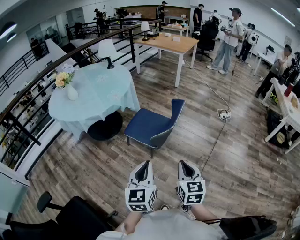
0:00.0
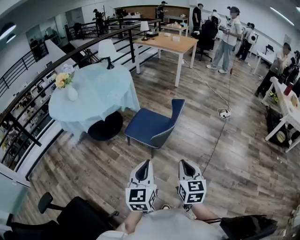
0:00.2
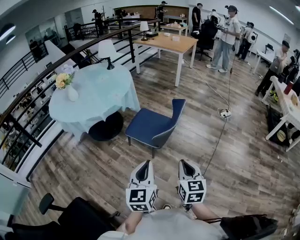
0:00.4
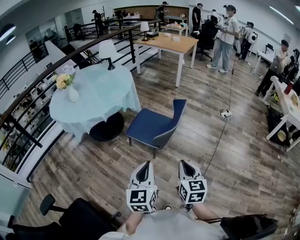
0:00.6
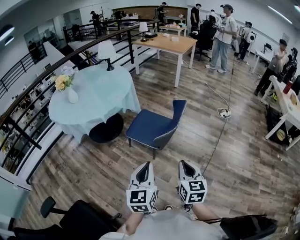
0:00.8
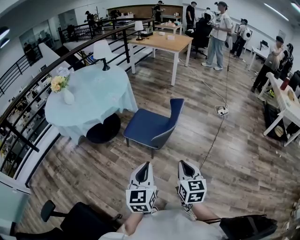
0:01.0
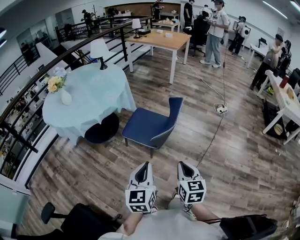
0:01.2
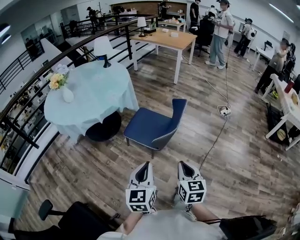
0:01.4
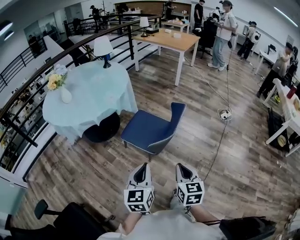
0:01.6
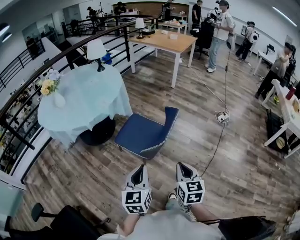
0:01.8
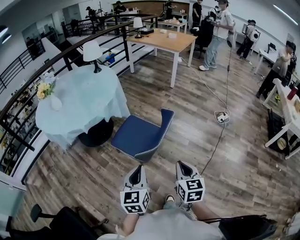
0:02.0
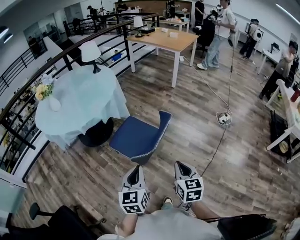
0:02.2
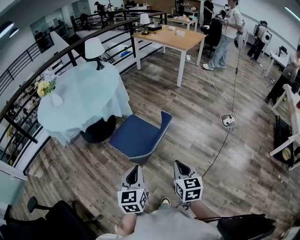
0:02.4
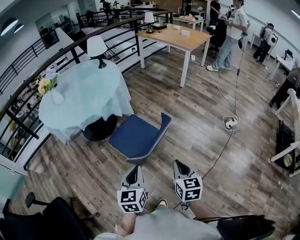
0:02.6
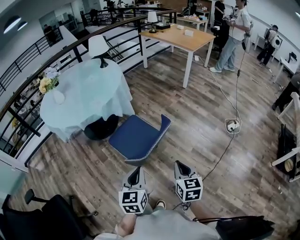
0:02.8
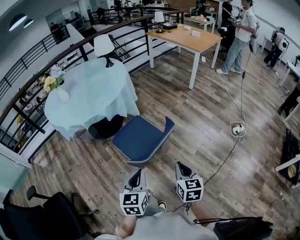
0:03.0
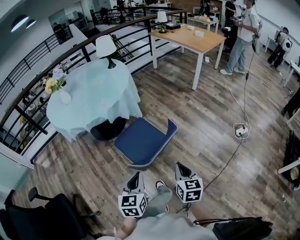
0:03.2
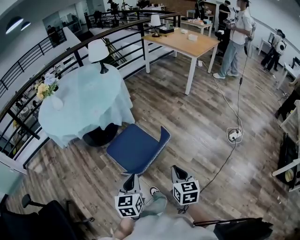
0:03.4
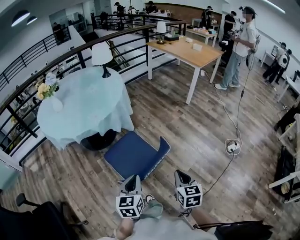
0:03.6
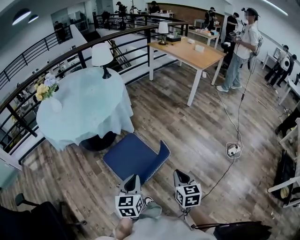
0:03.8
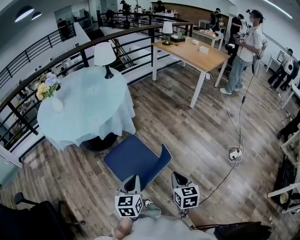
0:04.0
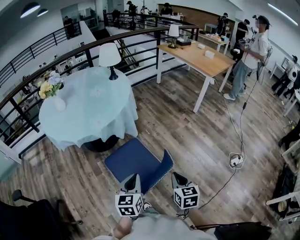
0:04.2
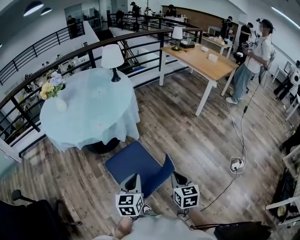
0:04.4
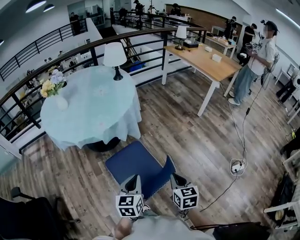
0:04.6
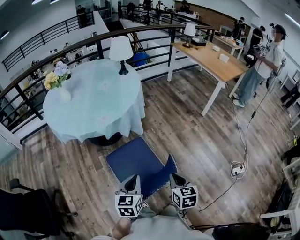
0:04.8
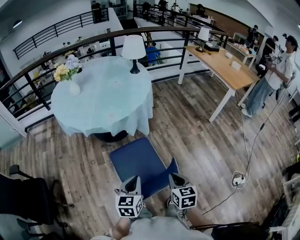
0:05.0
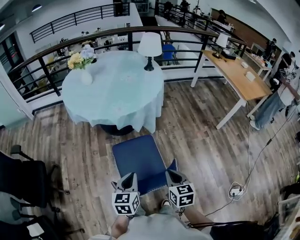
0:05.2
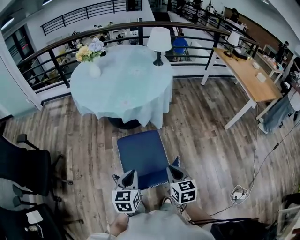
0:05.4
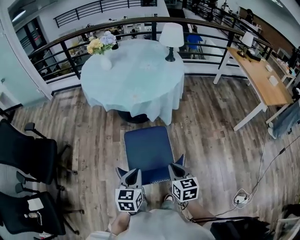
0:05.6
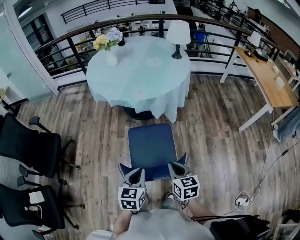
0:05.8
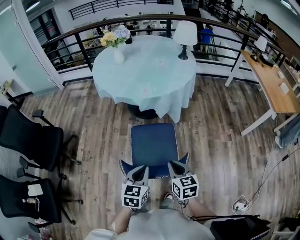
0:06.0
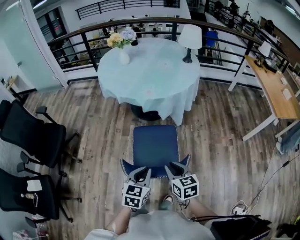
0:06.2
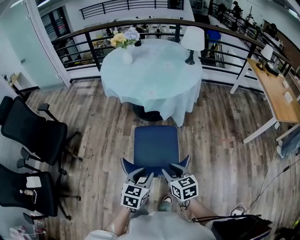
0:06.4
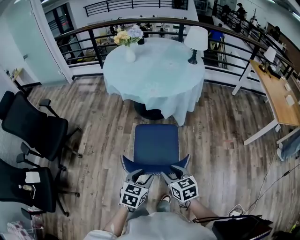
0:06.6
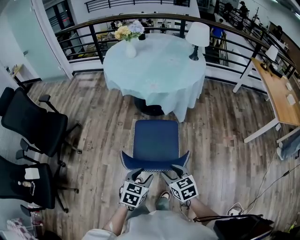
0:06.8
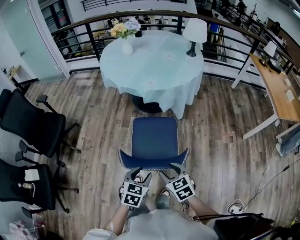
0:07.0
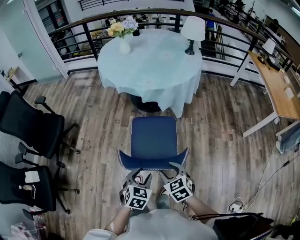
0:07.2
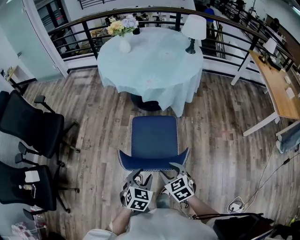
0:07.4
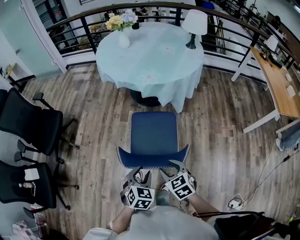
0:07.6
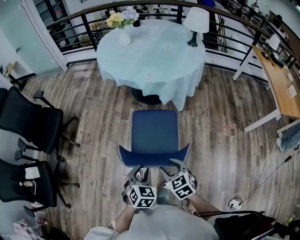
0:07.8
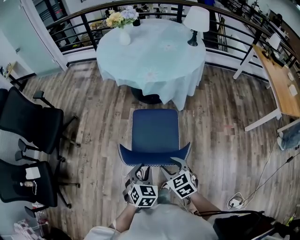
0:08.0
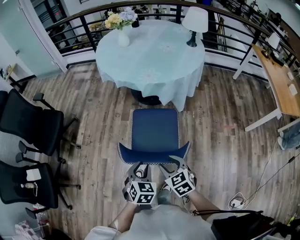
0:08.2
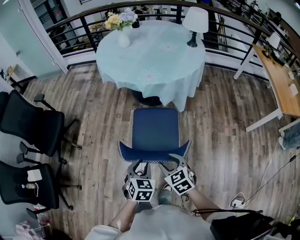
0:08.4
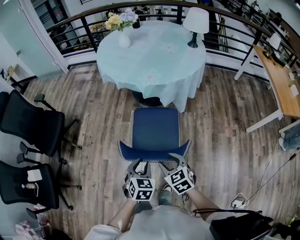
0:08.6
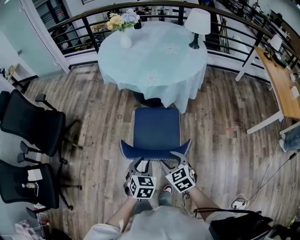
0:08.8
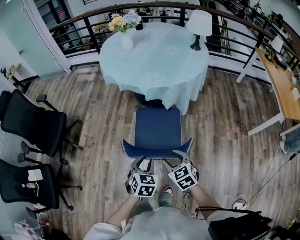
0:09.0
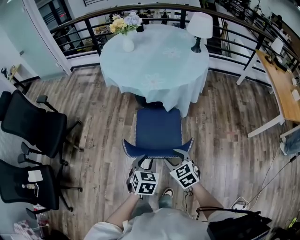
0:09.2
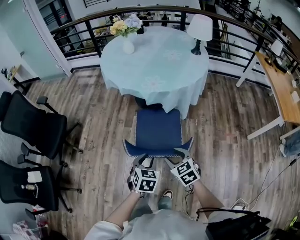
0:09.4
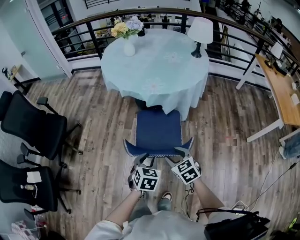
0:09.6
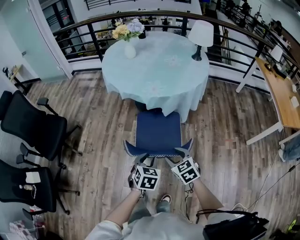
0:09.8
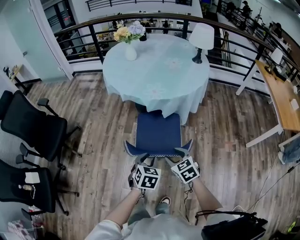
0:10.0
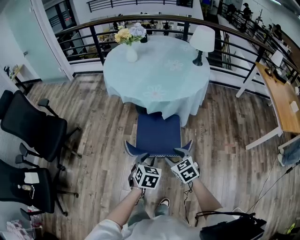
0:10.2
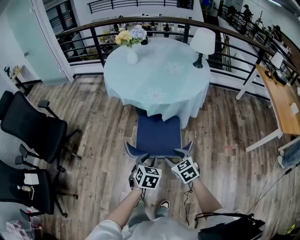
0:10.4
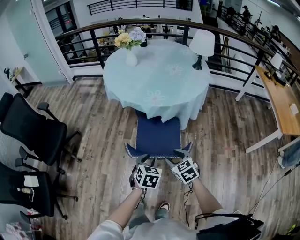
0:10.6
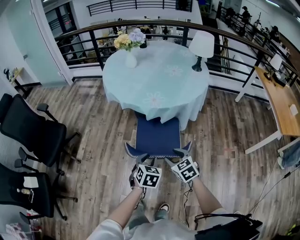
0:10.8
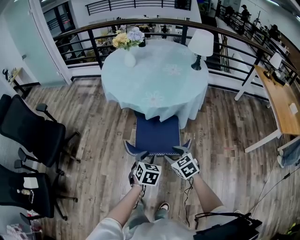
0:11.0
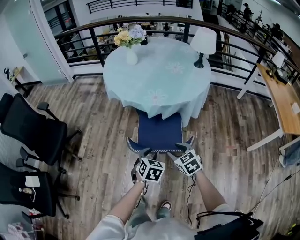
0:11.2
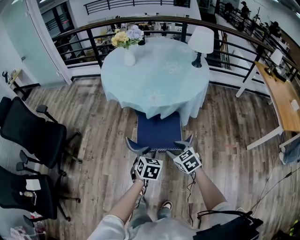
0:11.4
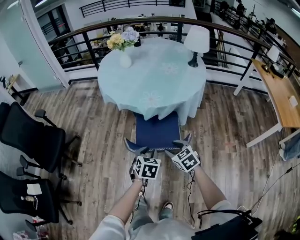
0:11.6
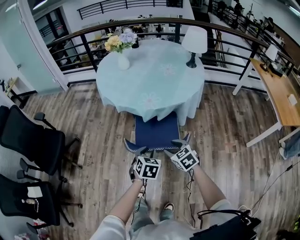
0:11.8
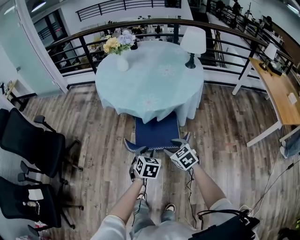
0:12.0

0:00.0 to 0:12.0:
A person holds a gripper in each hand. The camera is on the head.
0:00.0 to 0:01.6: The grippers both shift forward by approximately 10 cm.
0:01.6 to 0:03.0: Both grippers travel together to the right and forward, approximately 25 cm.
0:03.0 to 0:04.4: Both grippers move forward, approximately 20 cm.
0:04.4 to 0:06.0: The right gripper moves roughly 10 cm, and swivels approximately 40 degrees. The left gripper changes place by approximately 5 cm, and changes its angle by approximately 30 degrees.
0:06.0 to 0:07.6: The left gripper is displaced downward and backward by some 10 cm, rotates roughly 20 degrees, and opens up. Meanwhile the right gripper shifts roughly 5 cm backward and downward, rotates about 30 degrees, and opens its fingers.
0:07.6 to 0:09.0: The two grippers go some 5 cm forward.
0:09.0 to 0:10.4: Both grippers move forward, about 10 cm.
0:10.4 to 0:12.0: The grippers both shift forward by approximately 10 cm.

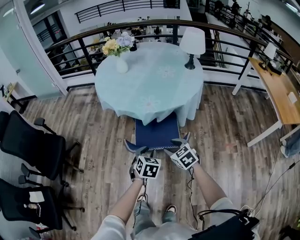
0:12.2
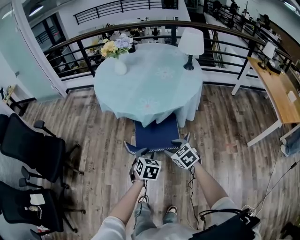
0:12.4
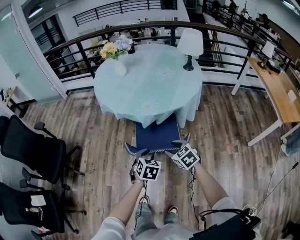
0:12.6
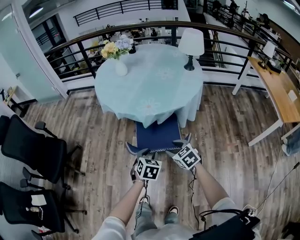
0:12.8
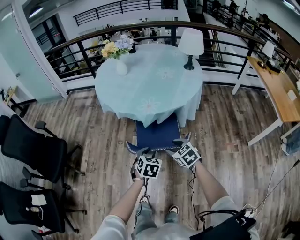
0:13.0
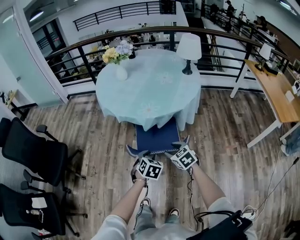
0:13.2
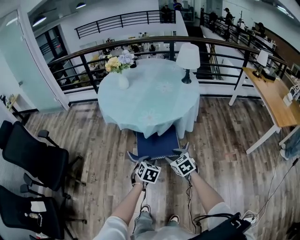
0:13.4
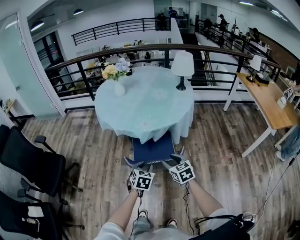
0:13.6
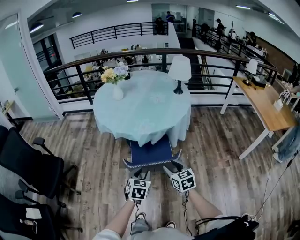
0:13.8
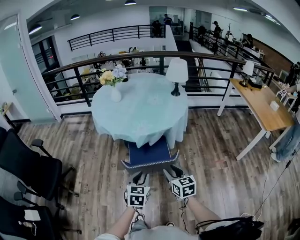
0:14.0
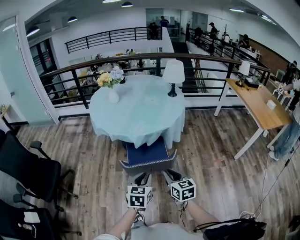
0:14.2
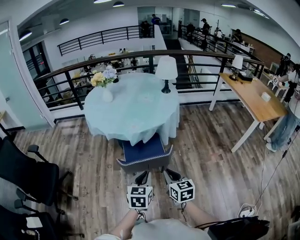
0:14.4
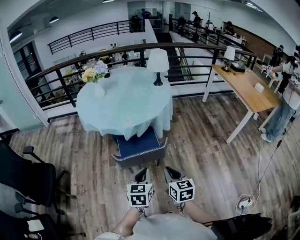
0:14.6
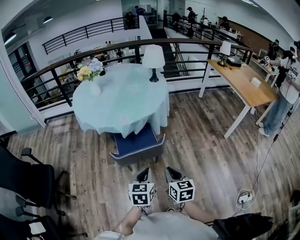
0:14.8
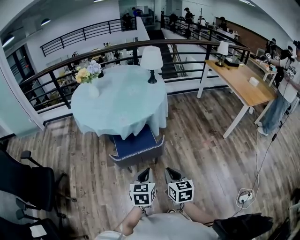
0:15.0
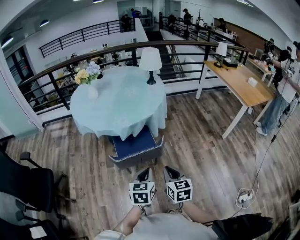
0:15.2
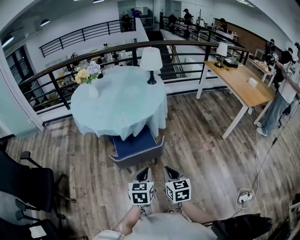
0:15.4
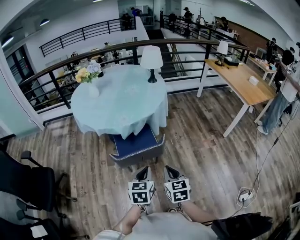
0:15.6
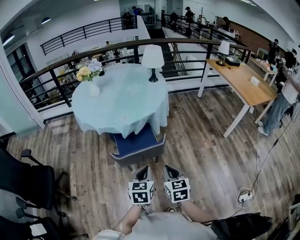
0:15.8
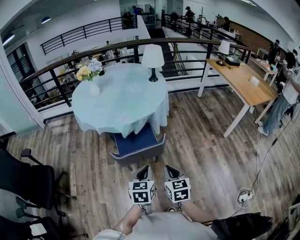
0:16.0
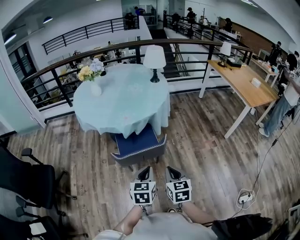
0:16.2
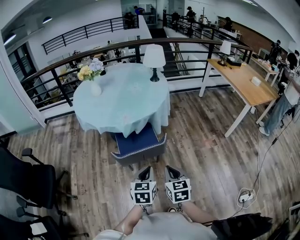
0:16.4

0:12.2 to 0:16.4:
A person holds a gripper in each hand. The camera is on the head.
0:12.2 to 0:13.6: The right gripper moves some 5 cm.
0:13.6 to 0:15.0: The left gripper goes roughly 15 cm backward, upward and to the right, swivels some 20 degrees, and closes up. Meanwhile the right gripper moves backward, roughly 15 cm, turns by roughly 30 degrees, and closes up.
0:15.0 to 0:16.4: The grippers make only small movements.

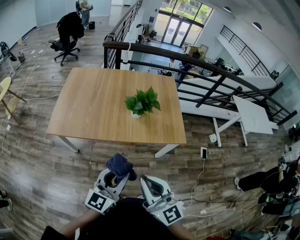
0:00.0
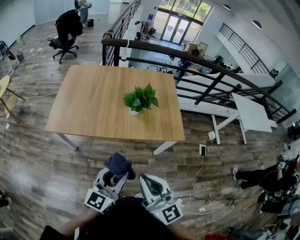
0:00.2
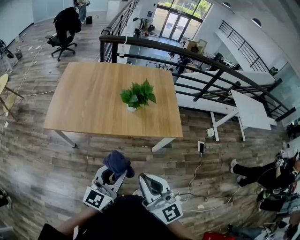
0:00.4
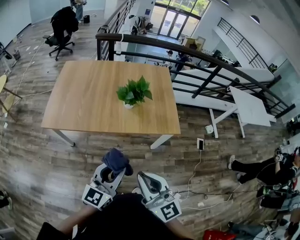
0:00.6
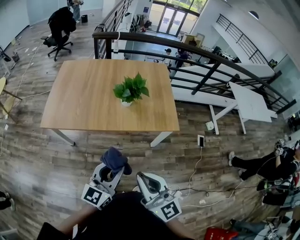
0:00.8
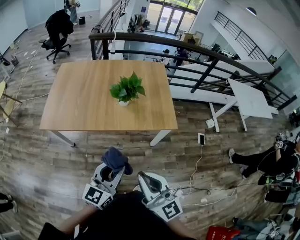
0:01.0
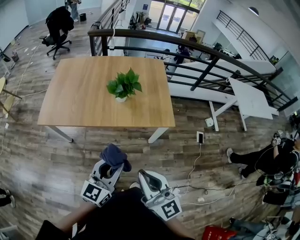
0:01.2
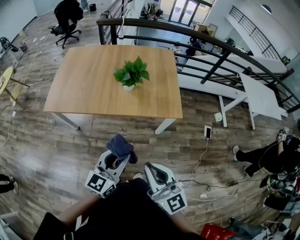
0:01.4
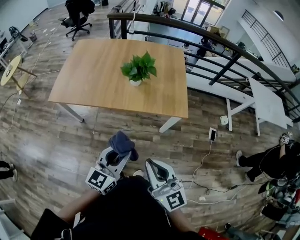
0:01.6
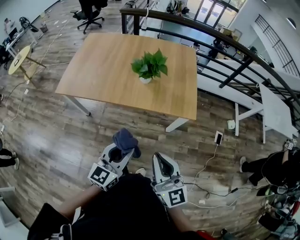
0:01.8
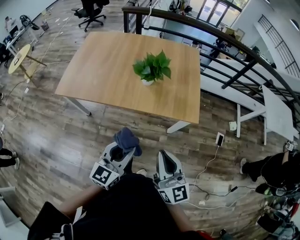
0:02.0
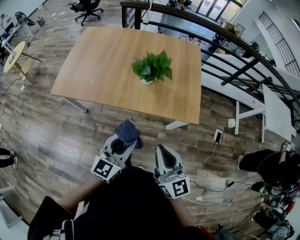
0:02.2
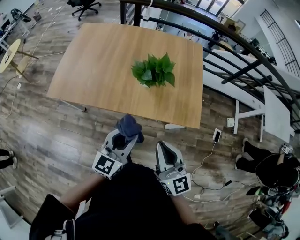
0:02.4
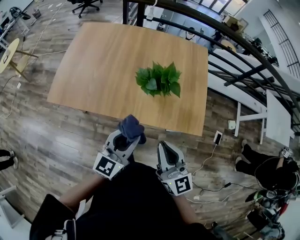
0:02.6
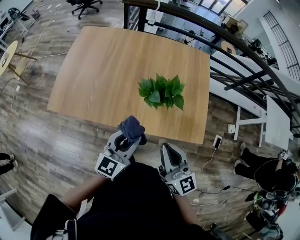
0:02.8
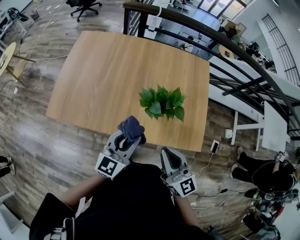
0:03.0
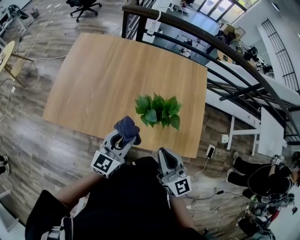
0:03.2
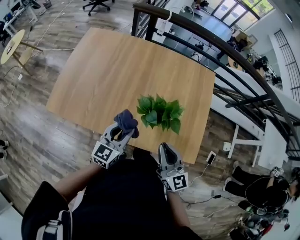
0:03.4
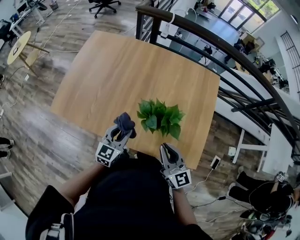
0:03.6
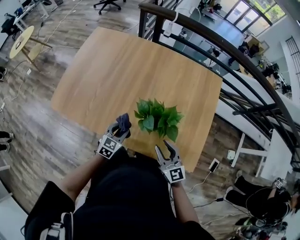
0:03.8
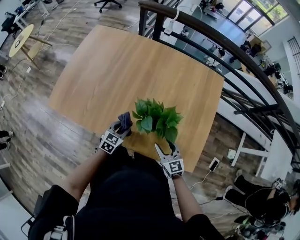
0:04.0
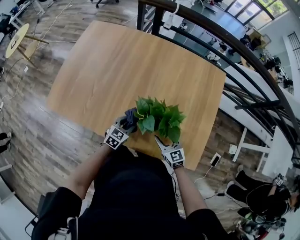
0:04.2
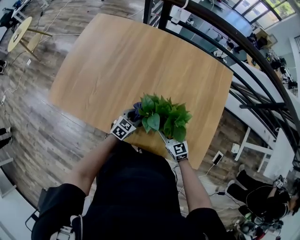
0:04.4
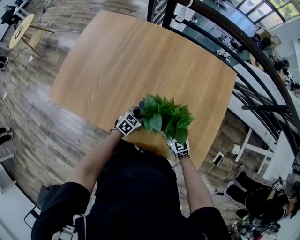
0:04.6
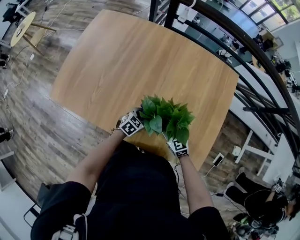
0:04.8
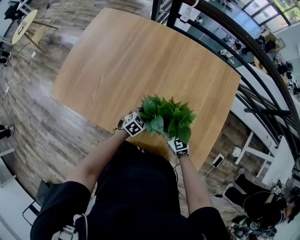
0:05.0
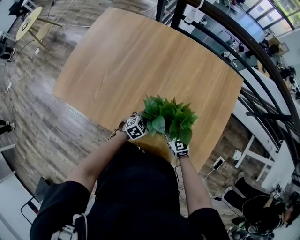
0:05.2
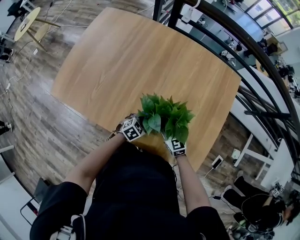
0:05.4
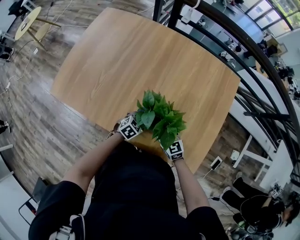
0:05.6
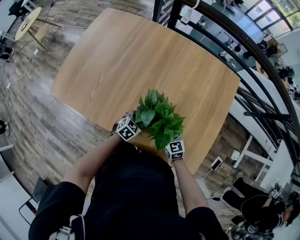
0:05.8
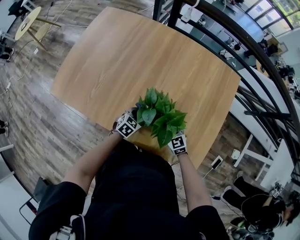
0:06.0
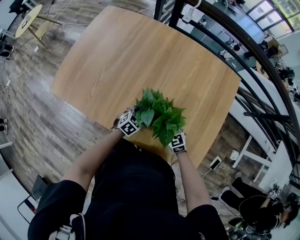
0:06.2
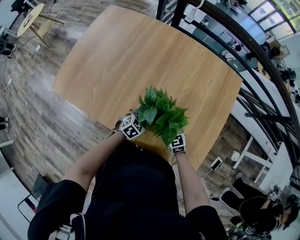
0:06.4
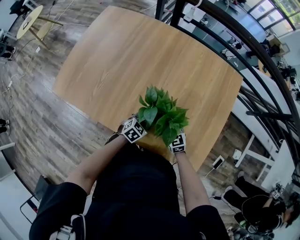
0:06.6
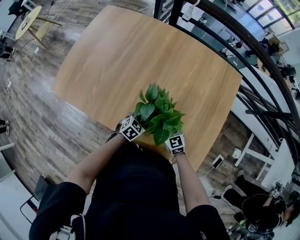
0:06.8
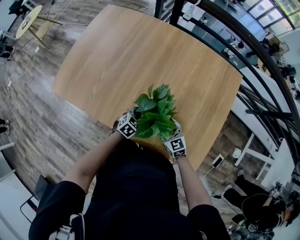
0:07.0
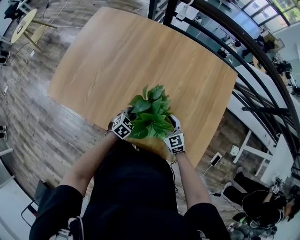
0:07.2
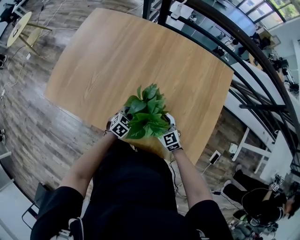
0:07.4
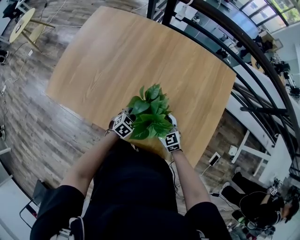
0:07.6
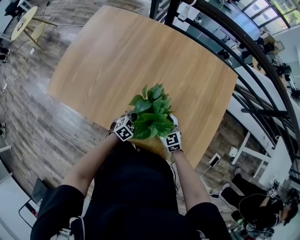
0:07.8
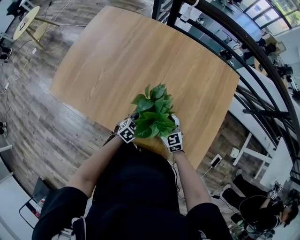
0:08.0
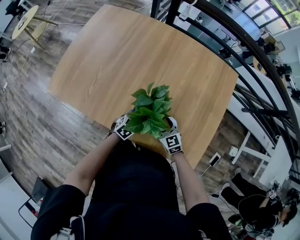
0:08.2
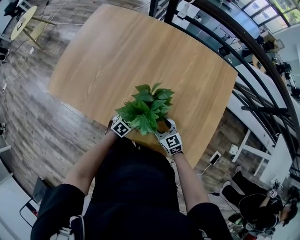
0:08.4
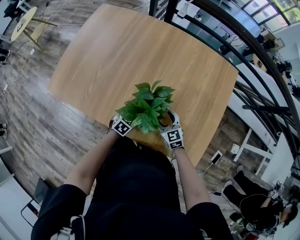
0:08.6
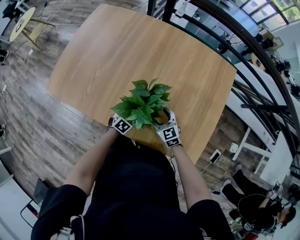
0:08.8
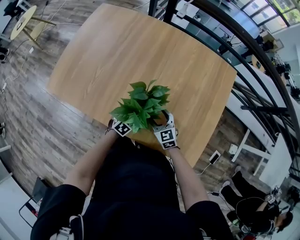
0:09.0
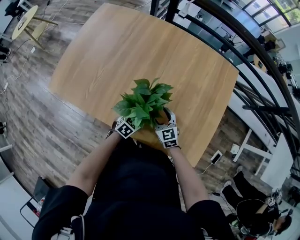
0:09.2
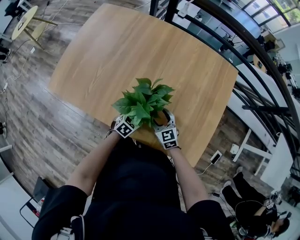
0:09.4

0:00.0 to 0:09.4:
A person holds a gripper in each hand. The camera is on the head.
0:00.0 to 0:01.6: The left gripper goes approximately 10 cm to the right. Meanwhile the right gripper heads to the right and downward, covering about 15 cm.
0:01.6 to 0:03.2: The grippers both shift forward by approximately 35 cm.
0:03.2 to 0:04.8: The right gripper shifts about 35 cm downward and forward, tilts its fingers roughly 30 degrees downward, and opens up; the left gripper goes approximately 30 cm downward, and points its fingers some 40 degrees further downward.
0:04.8 to 0:09.4: The grippers move only a little.
